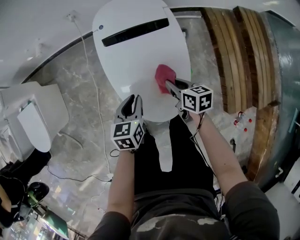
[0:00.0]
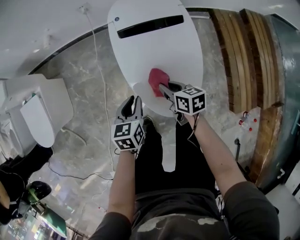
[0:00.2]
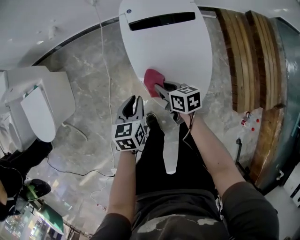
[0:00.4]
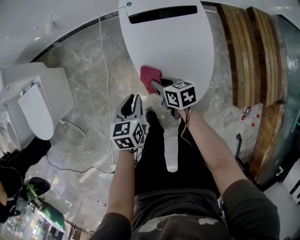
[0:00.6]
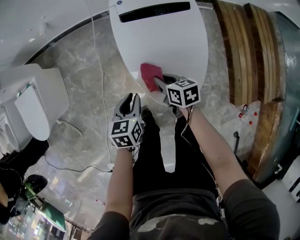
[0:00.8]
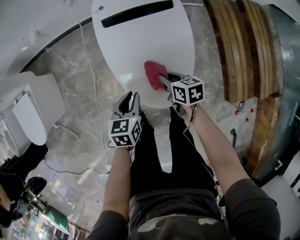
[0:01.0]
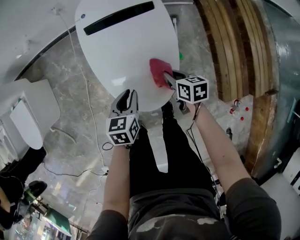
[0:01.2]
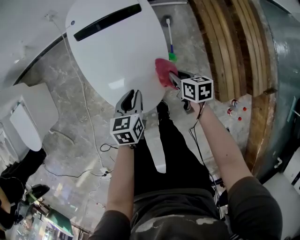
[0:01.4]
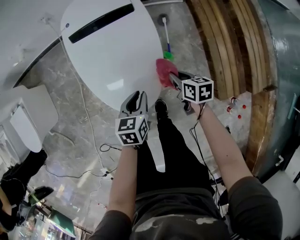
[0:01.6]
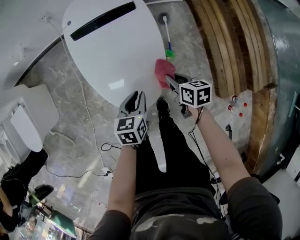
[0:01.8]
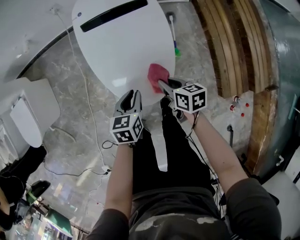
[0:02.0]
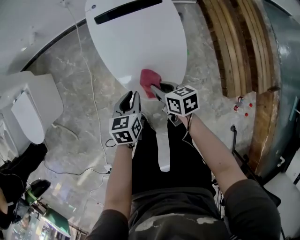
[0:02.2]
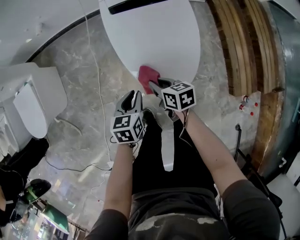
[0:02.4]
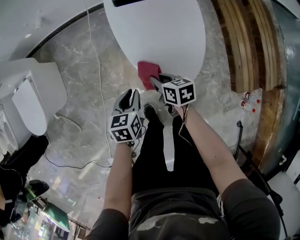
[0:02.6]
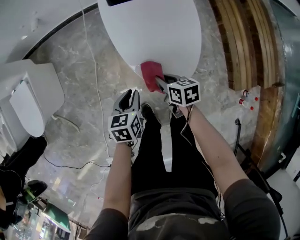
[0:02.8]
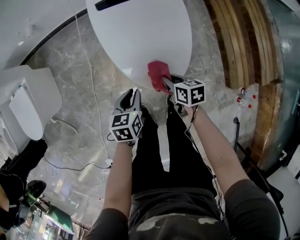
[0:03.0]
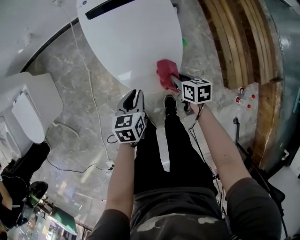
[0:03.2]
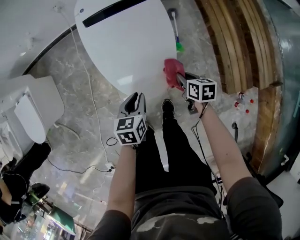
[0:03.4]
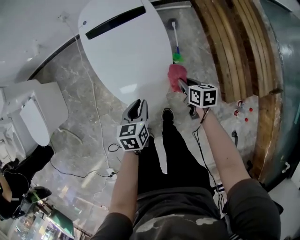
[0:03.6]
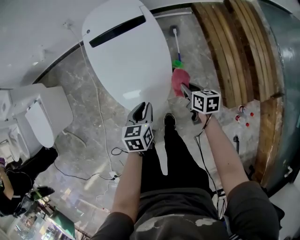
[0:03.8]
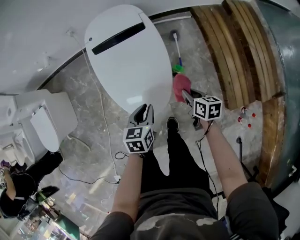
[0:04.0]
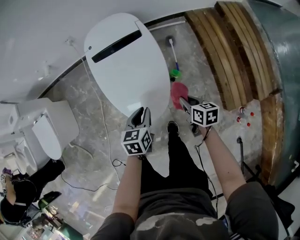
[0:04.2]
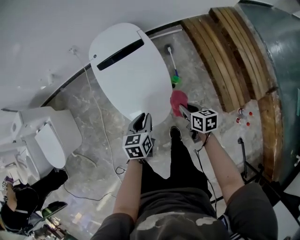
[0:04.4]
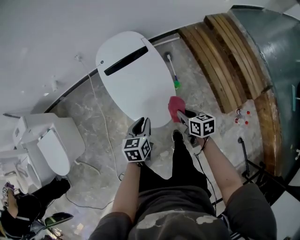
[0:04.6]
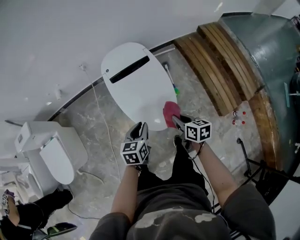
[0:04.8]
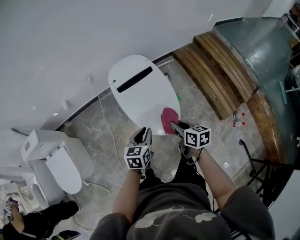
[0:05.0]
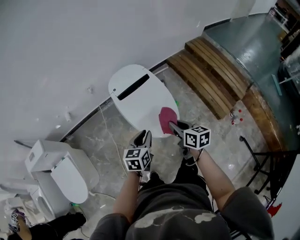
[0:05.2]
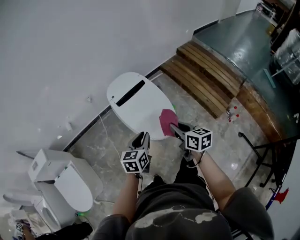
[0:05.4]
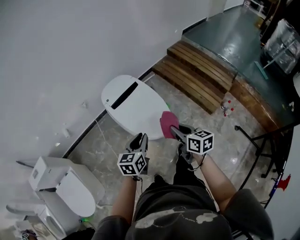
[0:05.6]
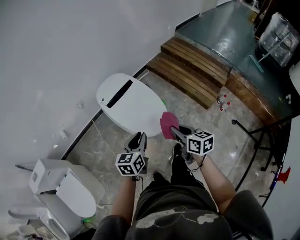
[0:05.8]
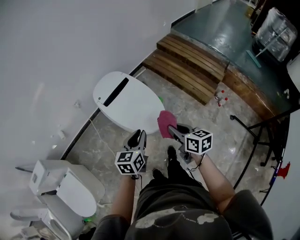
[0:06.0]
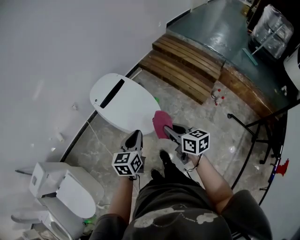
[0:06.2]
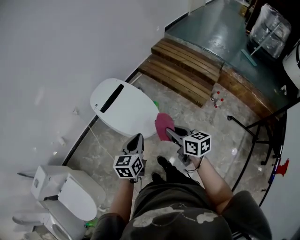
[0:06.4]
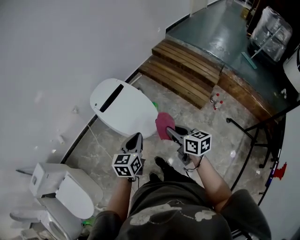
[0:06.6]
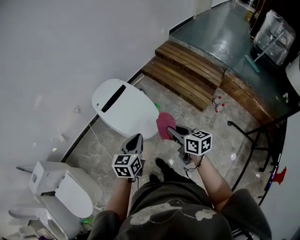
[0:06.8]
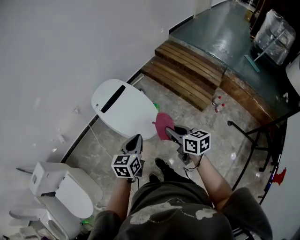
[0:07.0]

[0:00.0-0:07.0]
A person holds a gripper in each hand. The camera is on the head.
0.0 to 1.4 s: Both grippers move to the right and backward, approximately 10 cm.
1.4 to 2.8 s: The two grippers go some 20 cm to the left.
2.8 to 4.2 s: The right gripper goes some 25 cm to the right. The left gripper shifts approximately 20 cm to the right and upward.
4.2 to 5.6 s: Both grippers travel together upward, some 25 cm. The right gripper rotates roughly 30 degrees; the left gripper swivels about 40 degrees.
5.6 to 7.0 s: The grippers both shift to the right by roughly 5 cm.

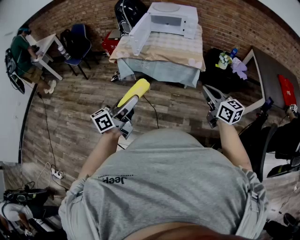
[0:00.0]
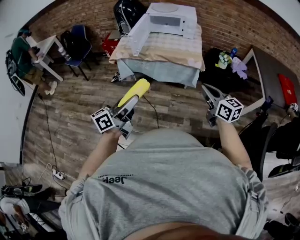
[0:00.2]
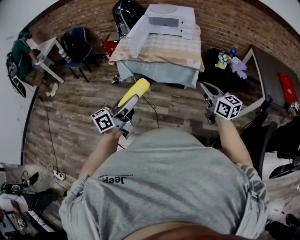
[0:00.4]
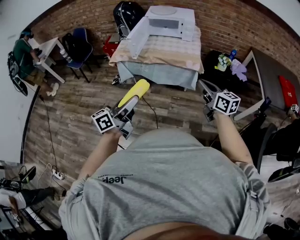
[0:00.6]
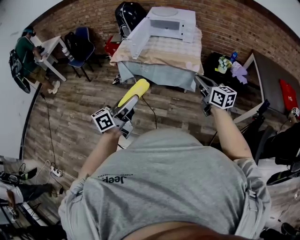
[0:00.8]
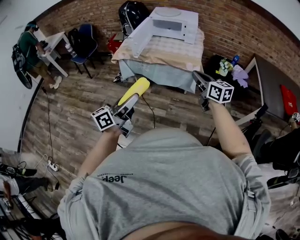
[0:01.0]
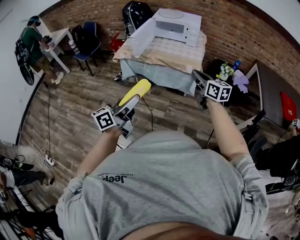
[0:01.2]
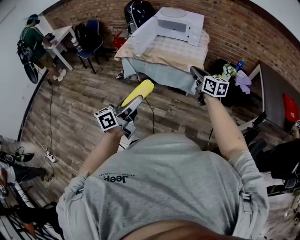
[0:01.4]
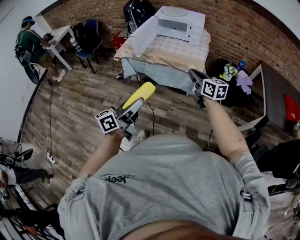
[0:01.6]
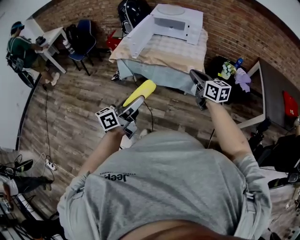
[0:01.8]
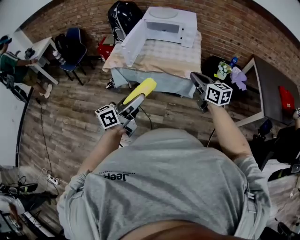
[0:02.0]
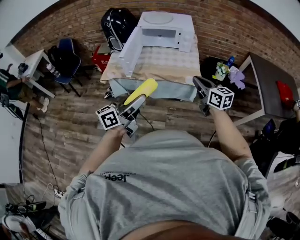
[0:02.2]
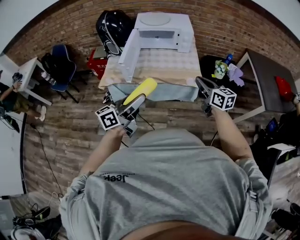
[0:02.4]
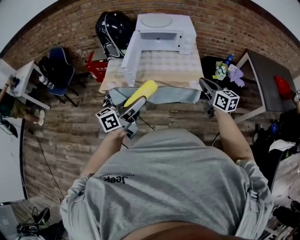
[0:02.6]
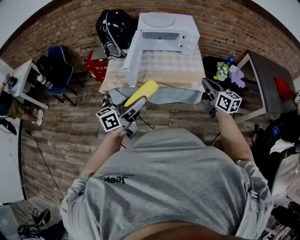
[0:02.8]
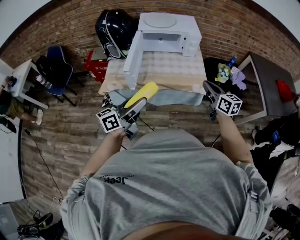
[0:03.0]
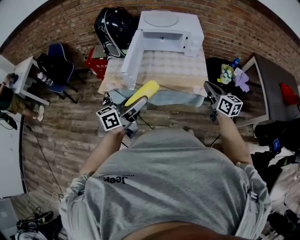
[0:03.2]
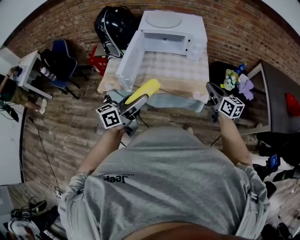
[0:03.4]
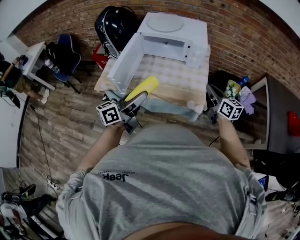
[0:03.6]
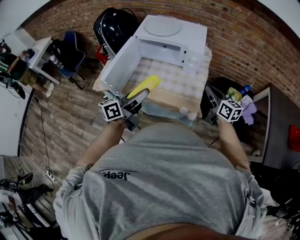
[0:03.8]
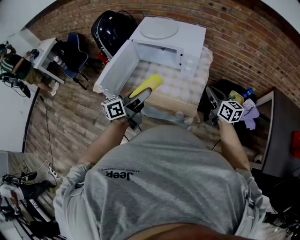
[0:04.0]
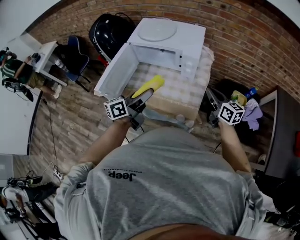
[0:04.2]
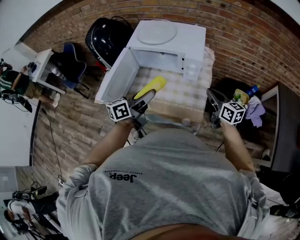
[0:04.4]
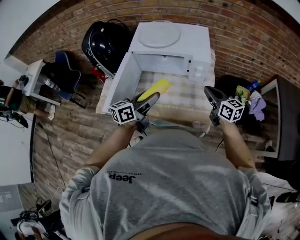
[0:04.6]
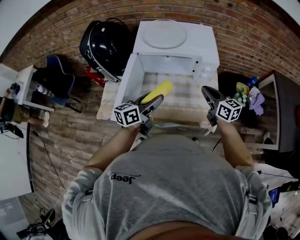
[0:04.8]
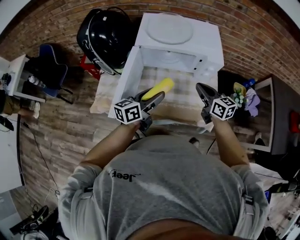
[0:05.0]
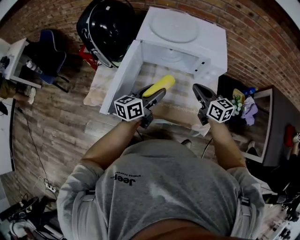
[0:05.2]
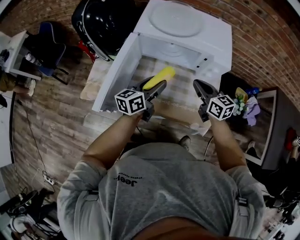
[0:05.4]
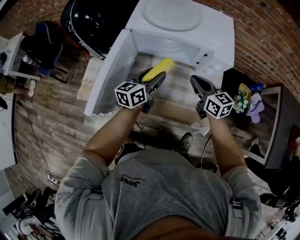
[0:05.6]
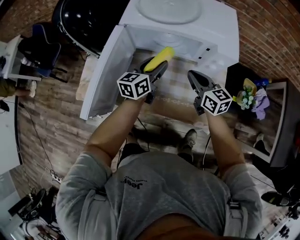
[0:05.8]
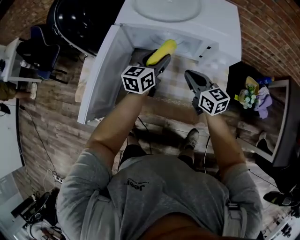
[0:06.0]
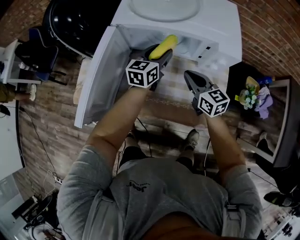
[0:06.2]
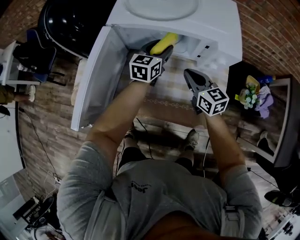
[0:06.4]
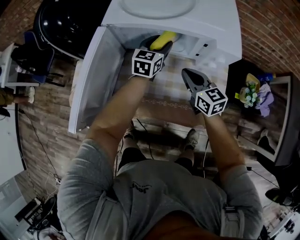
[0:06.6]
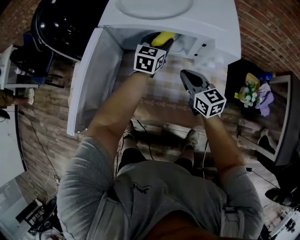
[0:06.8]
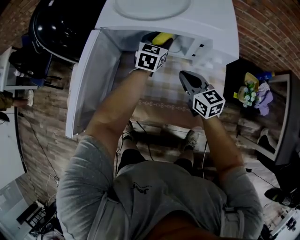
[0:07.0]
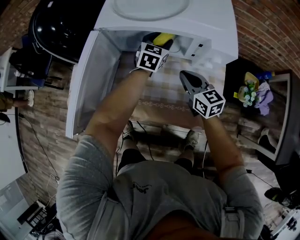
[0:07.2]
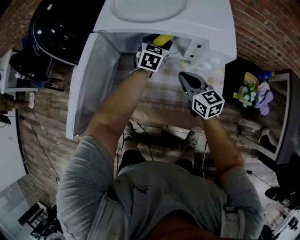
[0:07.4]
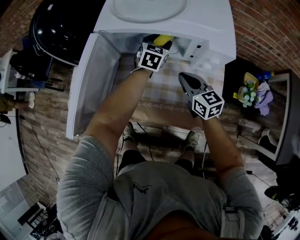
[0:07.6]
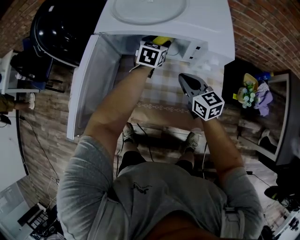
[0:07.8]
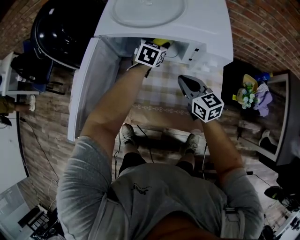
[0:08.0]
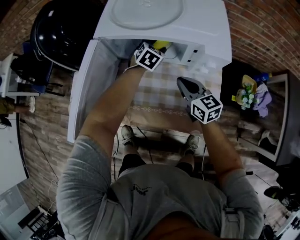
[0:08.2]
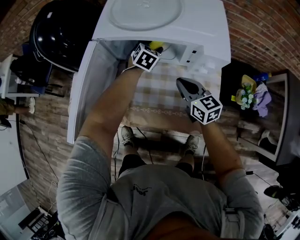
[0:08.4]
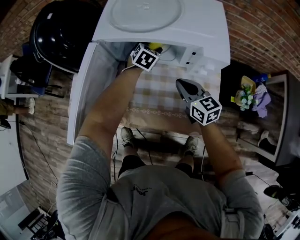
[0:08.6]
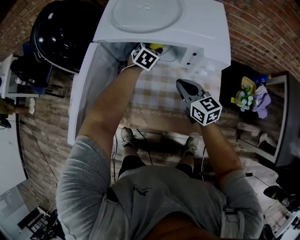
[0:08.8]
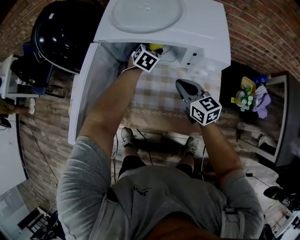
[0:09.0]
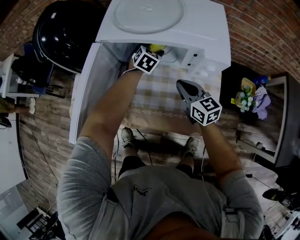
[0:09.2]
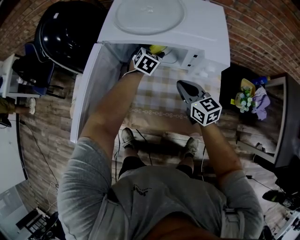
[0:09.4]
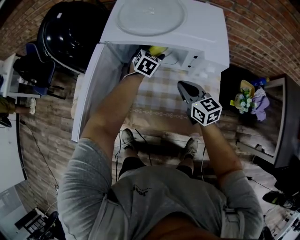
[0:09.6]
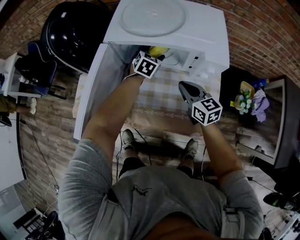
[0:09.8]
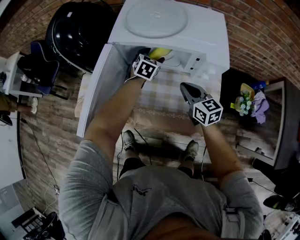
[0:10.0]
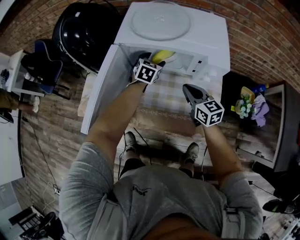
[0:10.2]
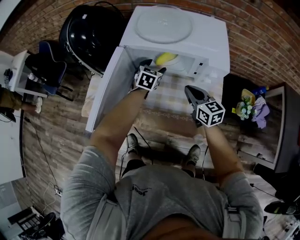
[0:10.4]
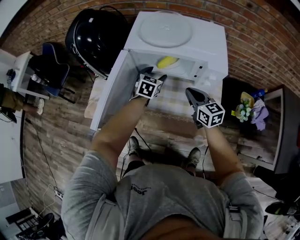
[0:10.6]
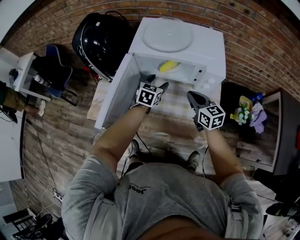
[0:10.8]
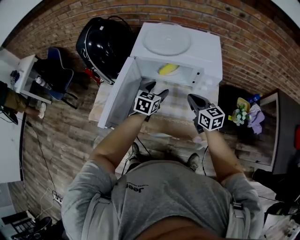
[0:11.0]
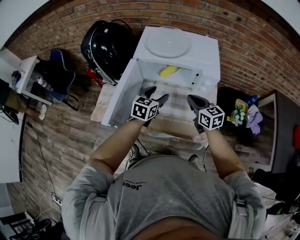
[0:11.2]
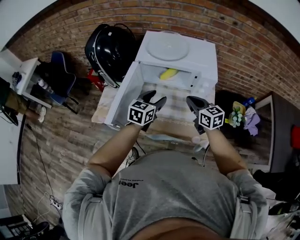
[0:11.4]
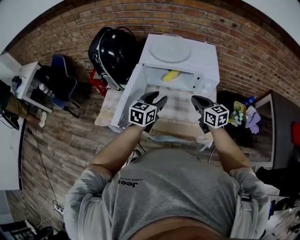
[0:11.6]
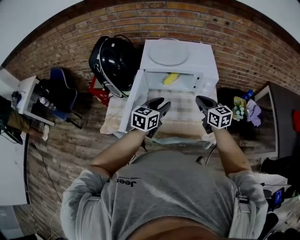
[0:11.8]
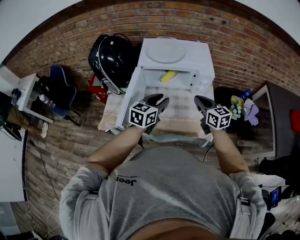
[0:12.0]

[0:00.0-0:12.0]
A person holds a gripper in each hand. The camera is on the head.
0.0 to 1.6 s: The right gripper is displaced forward by approximately 15 cm. The left gripper travels to the right by approximately 10 cm.
1.6 to 3.0 s: The left gripper moves forward and to the left, about 35 cm, and changes its angle by roughly 20 degrees; the right gripper heads forward, covering some 20 cm, and rotates about 20 degrees.
3.0 to 4.4 s: The two grippers go about 30 cm forward and to the right.
4.4 to 6.0 s: The right gripper heads to the left, downward and forward, covering some 25 cm; the left gripper travels forward and downward by approximately 30 cm, and rotates about 20 degrees.
6.0 to 7.6 s: The left gripper shifts approximately 15 cm forward, to the right and downward, and rotates roughly 30 degrees.
7.6 to 9.0 s: The grippers move only a little.
9.0 to 10.4 s: The left gripper goes roughly 10 cm backward and to the left.
10.4 to 12.0 s: The left gripper heads backward and upward, covering roughly 30 cm, swivels some 30 degrees, and closes its fingers. Meanwhile the right gripper shifts roughly 15 cm upward and backward.

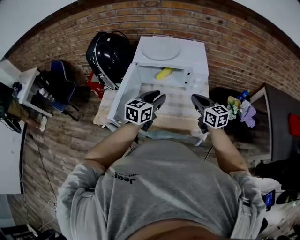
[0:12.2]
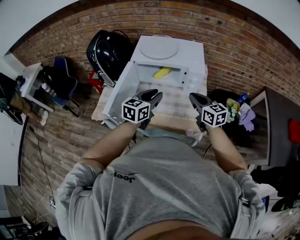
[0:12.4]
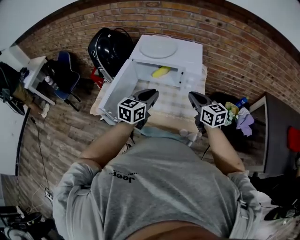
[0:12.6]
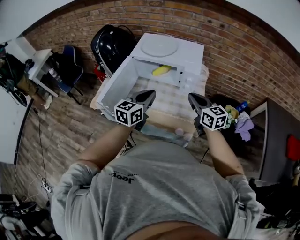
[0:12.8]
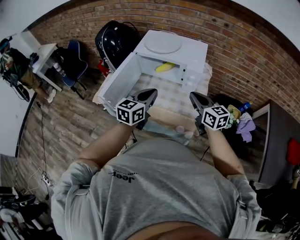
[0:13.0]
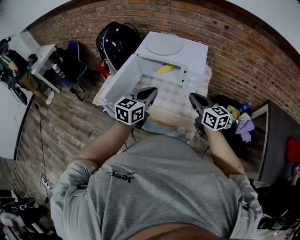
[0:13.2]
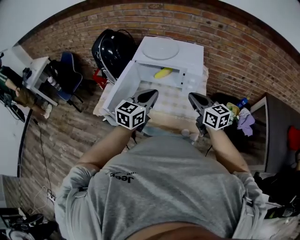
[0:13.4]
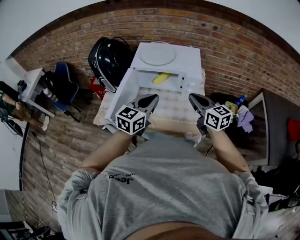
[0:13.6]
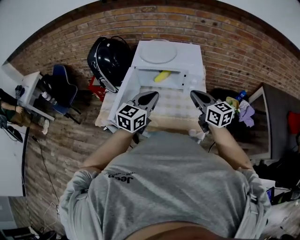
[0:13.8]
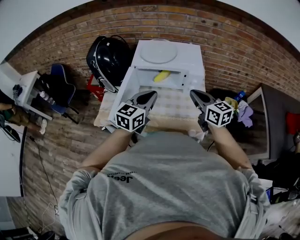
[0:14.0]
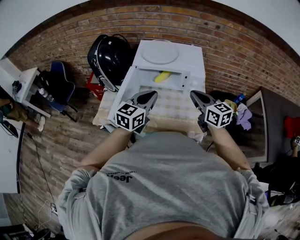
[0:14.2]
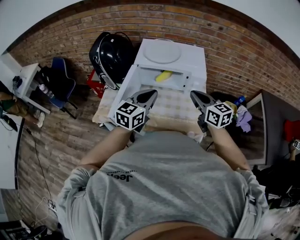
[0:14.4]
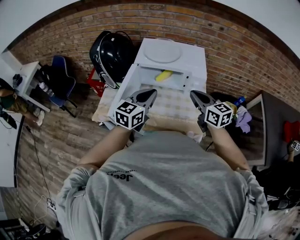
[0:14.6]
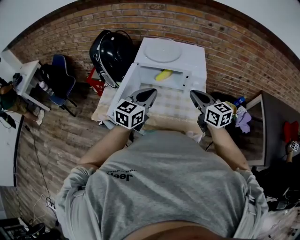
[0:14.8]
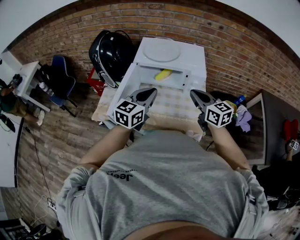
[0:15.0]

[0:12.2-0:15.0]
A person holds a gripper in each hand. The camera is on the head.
12.2 to 13.6 s: The grippers both shift upward by some 10 cm. The left gripper closes its fingers.
13.6 to 15.0 s: There are only small adjustments of the grippers.

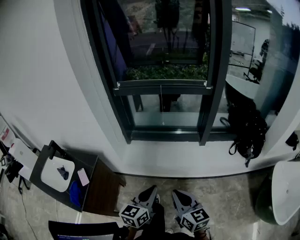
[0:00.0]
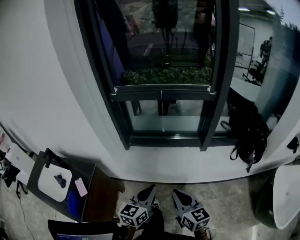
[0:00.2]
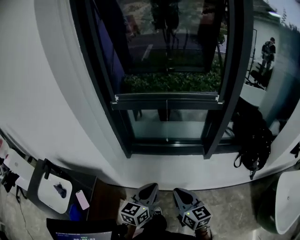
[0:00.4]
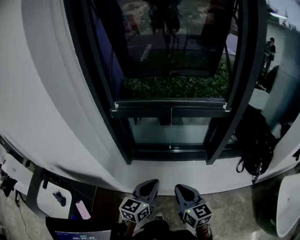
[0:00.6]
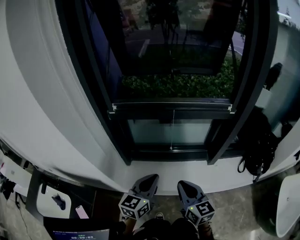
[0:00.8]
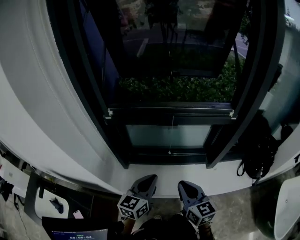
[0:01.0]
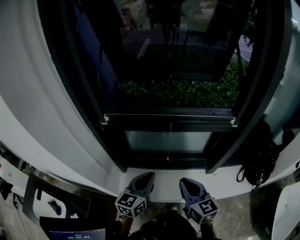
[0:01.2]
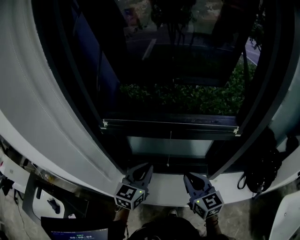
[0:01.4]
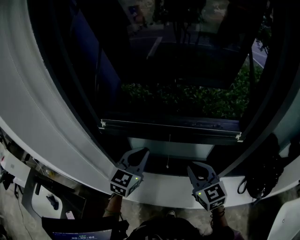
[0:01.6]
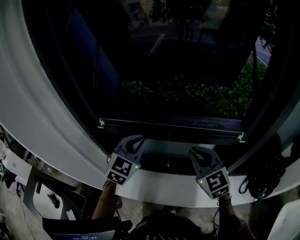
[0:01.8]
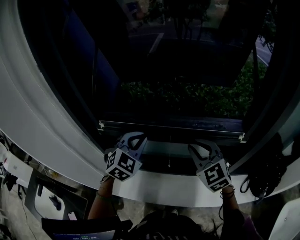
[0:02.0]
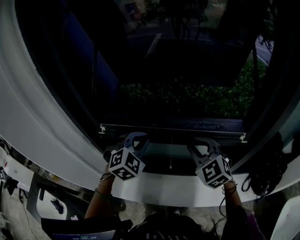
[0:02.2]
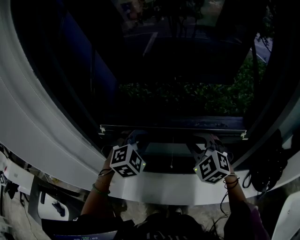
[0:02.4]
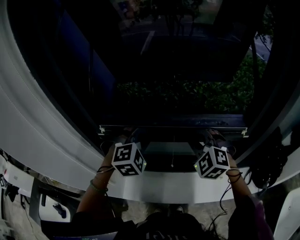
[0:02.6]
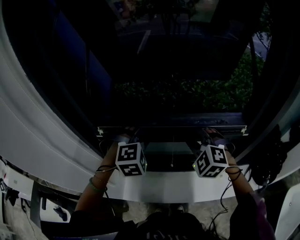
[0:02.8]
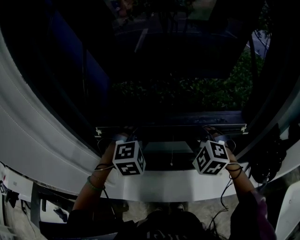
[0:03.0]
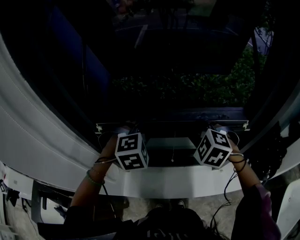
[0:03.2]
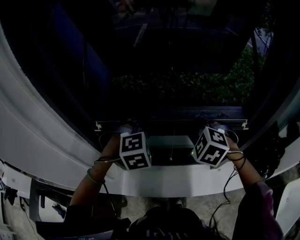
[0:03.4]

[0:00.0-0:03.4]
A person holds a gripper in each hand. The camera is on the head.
0.0 to 1.6 s: The pair of grippers is taken forward, roughly 60 cm. The left gripper swivels roughly 30 degrees. Meanwhile the right gripper turns by approximately 30 degrees.
1.6 to 3.4 s: The left gripper moves forward, roughly 10 cm, and tips its fingers downward by about 40 degrees. The right gripper heads forward, covering approximately 10 cm, and tilts its fingers about 40 degrees downward.
